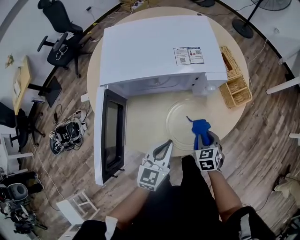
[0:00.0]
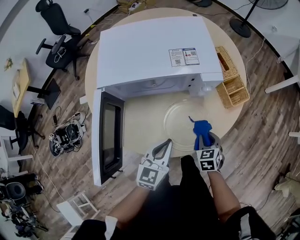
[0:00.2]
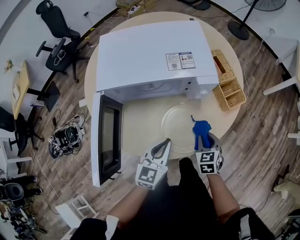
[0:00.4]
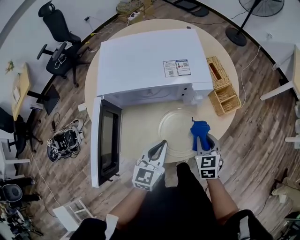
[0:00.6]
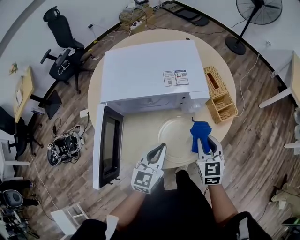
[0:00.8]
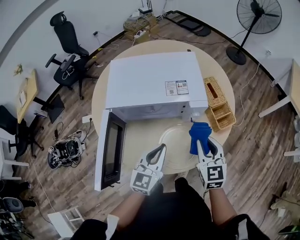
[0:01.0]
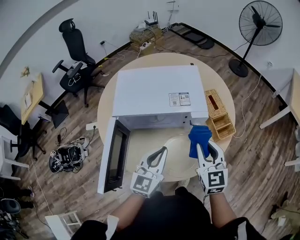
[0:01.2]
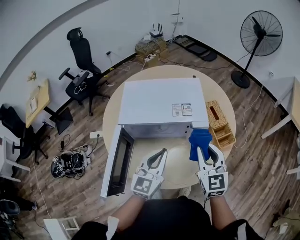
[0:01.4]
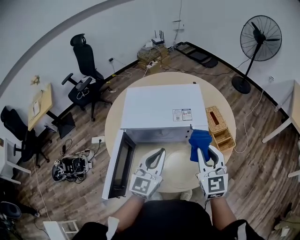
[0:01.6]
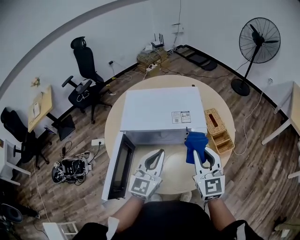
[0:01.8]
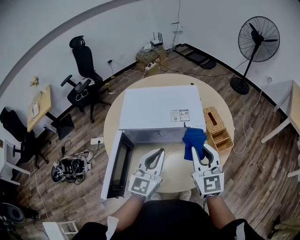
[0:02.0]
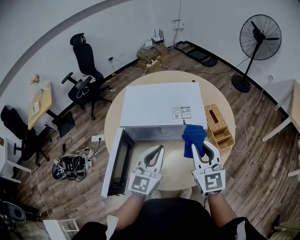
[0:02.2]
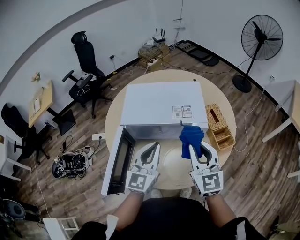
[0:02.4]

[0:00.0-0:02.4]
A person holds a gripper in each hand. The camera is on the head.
0:00.0 to 0:01.2: The left gripper is displaced upward and forward by roughly 15 cm. Meanwhile the right gripper goes about 25 cm upward, and tips its fingers upward by roughly 40 degrees.
0:01.2 to 0:02.4: Both grippers move upward, some 10 cm.

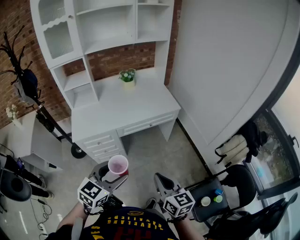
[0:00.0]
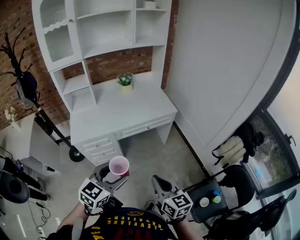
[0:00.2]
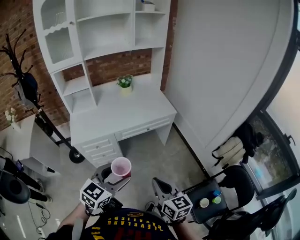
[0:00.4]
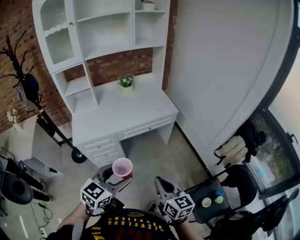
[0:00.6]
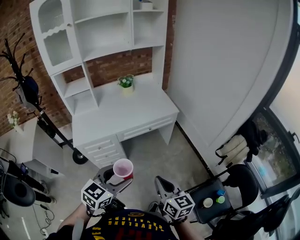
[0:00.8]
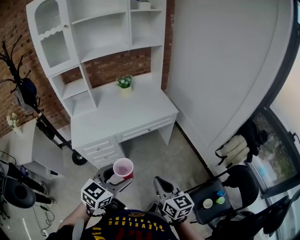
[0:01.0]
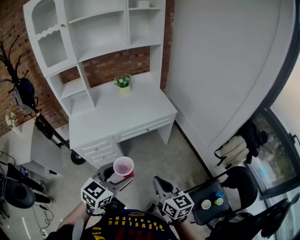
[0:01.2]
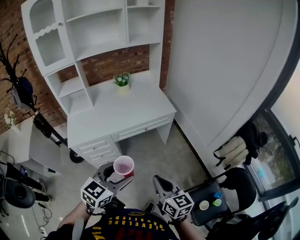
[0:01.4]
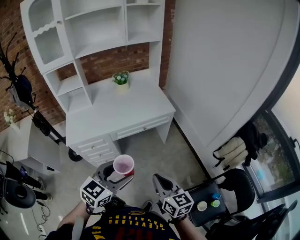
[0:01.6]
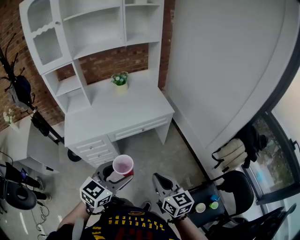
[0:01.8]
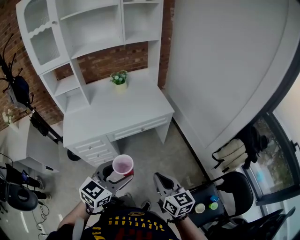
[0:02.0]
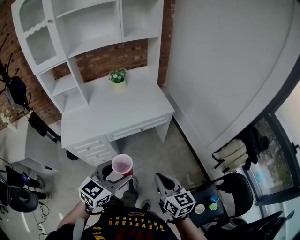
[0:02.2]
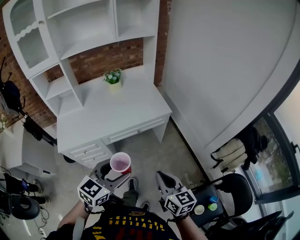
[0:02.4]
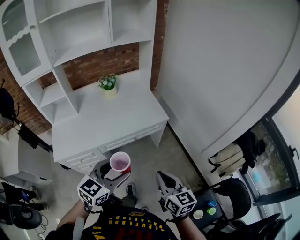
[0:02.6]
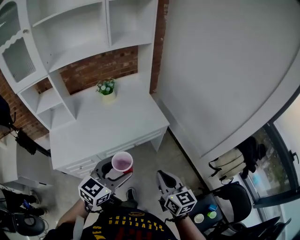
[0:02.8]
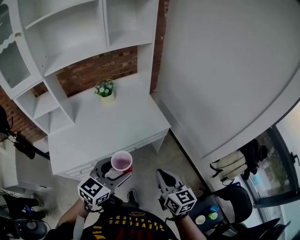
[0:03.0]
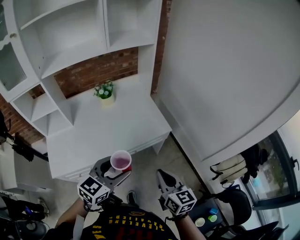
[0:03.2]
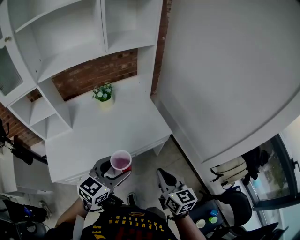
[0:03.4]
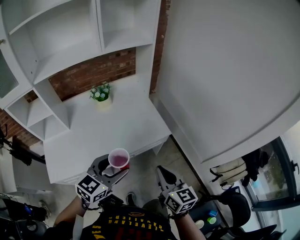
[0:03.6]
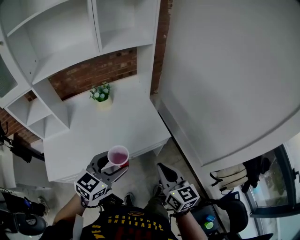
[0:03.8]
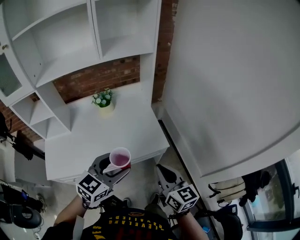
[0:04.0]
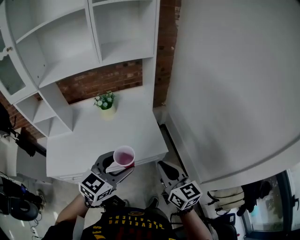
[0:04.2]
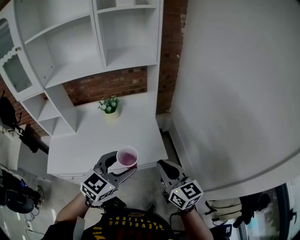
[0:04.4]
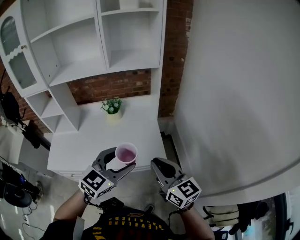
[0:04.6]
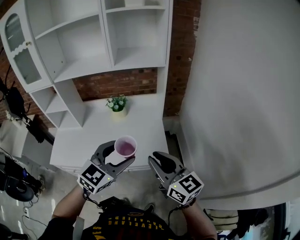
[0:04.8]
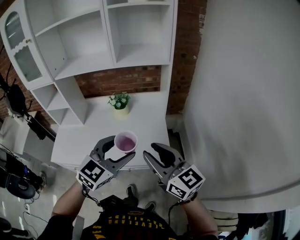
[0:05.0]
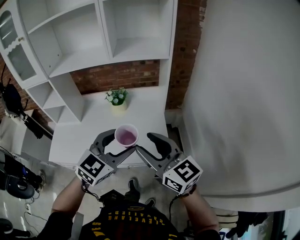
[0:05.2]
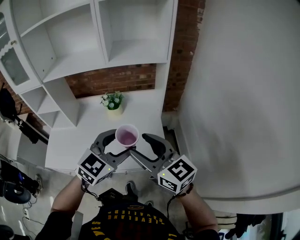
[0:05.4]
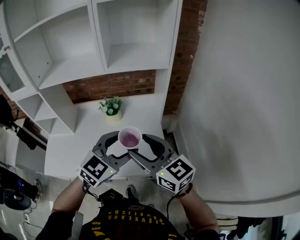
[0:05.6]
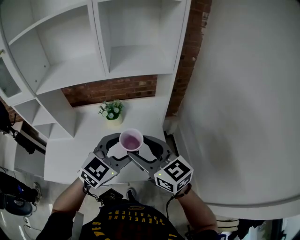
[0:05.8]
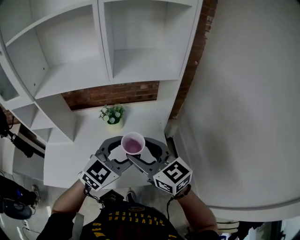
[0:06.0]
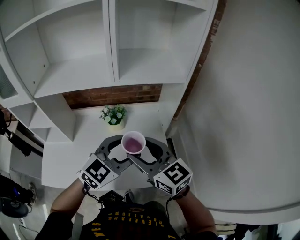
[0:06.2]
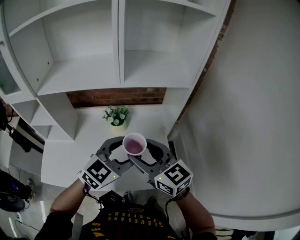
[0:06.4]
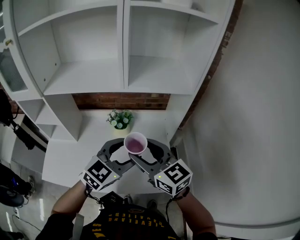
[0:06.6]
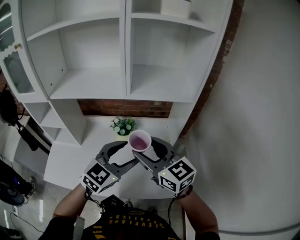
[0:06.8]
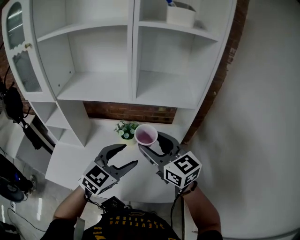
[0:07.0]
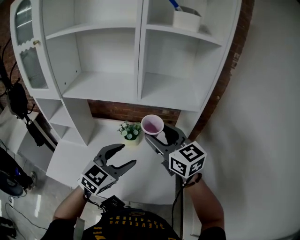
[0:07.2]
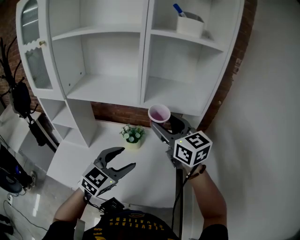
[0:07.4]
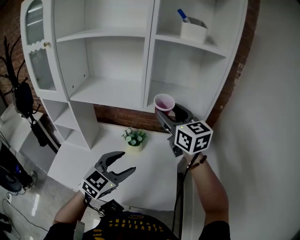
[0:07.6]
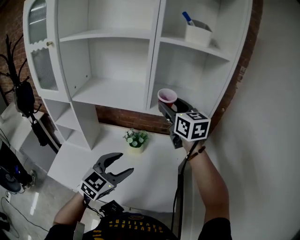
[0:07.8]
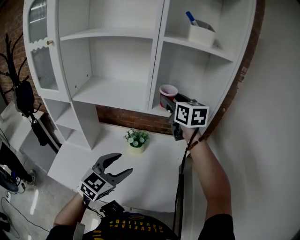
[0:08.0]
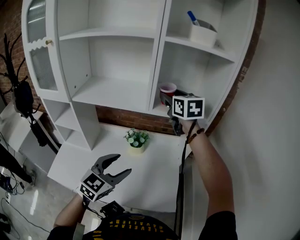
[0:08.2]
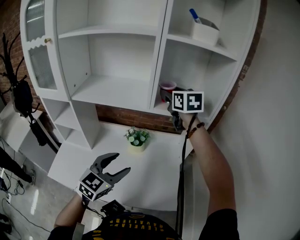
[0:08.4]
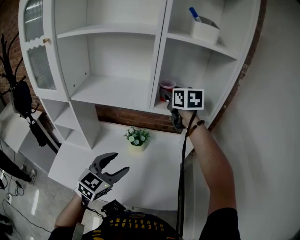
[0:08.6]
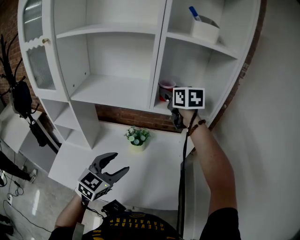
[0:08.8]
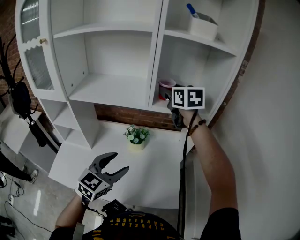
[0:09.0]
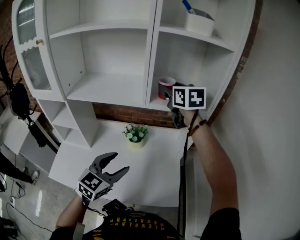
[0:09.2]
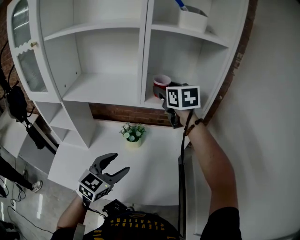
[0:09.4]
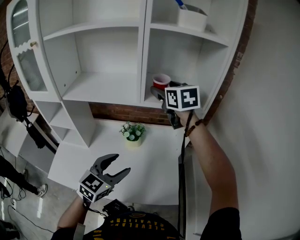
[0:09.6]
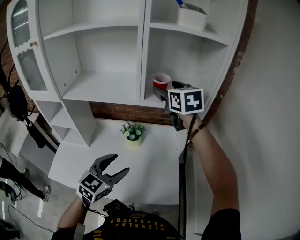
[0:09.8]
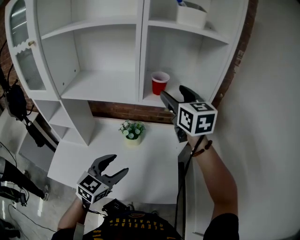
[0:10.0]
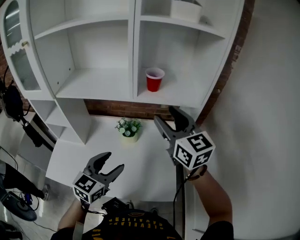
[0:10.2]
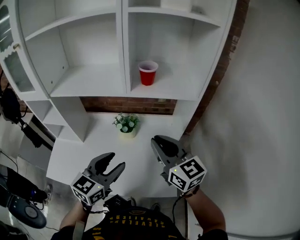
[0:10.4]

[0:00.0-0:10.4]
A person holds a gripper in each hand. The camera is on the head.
0:00.0 to 0:01.4: The left gripper shifts roughly 5 cm to the right.
0:01.4 to 0:03.0: Both grippers travel together forward, some 25 cm.
0:03.0 to 0:04.4: The right gripper moves forward, approximately 20 cm, and turns by some 20 degrees, while the left gripper shifts roughly 20 cm forward and to the right.
0:04.4 to 0:06.0: The left gripper is displaced forward by about 20 cm, while the right gripper moves forward and to the left, approximately 25 cm, swivels about 20 degrees, and opens up.
0:06.0 to 0:07.4: The left gripper goes approximately 10 cm to the left, and rotates approximately 20 degrees. The right gripper travels forward and upward by about 20 cm.
0:07.4 to 0:09.0: The left gripper goes approximately 5 cm to the left. Meanwhile the right gripper travels forward by approximately 20 cm, and swivels roughly 20 degrees.
0:09.0 to 0:10.4: The right gripper is displaced backward and downward by roughly 25 cm, and closes up; the left gripper goes approximately 5 cm to the right.

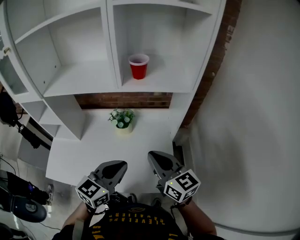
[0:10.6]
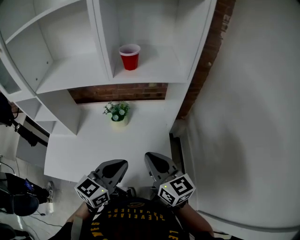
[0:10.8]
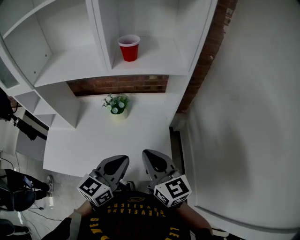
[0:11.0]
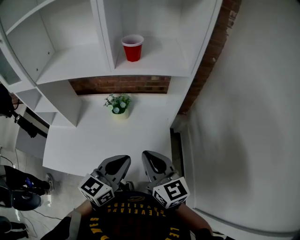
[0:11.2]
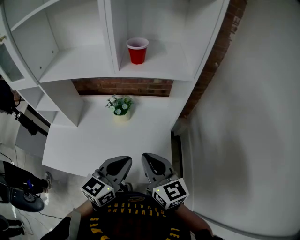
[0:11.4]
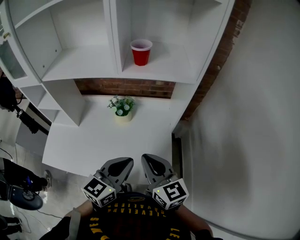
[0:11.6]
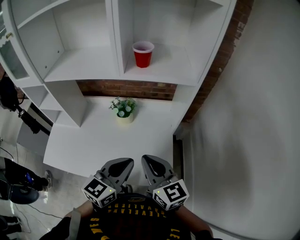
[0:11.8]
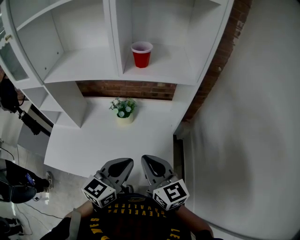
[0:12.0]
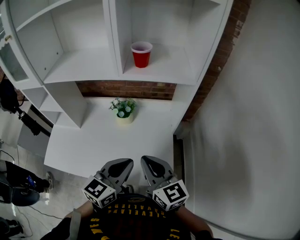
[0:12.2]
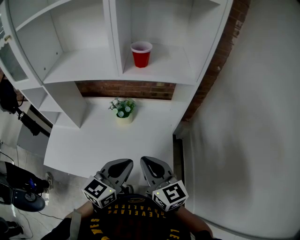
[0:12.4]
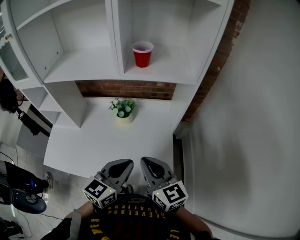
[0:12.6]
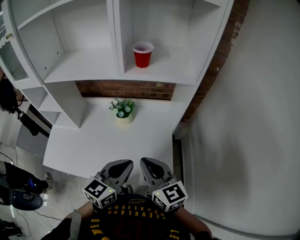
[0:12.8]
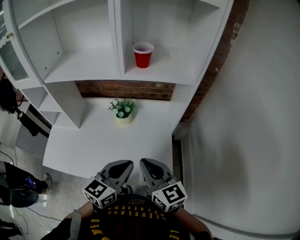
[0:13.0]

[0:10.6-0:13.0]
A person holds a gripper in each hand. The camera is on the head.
0:10.6 to 0:11.8: There are only small adjustments of the grippers.
0:11.8 to 0:13.0: The grippers stay close to where they were, moving slightly.

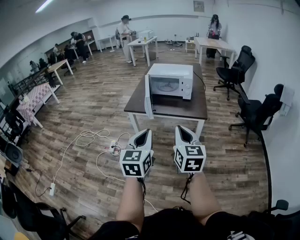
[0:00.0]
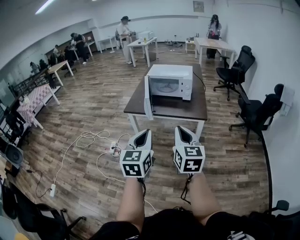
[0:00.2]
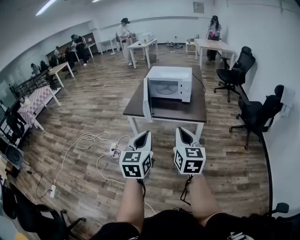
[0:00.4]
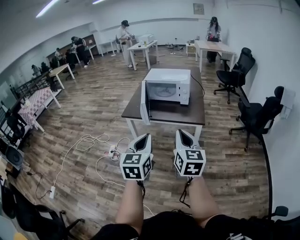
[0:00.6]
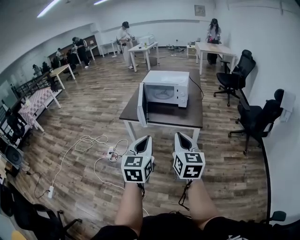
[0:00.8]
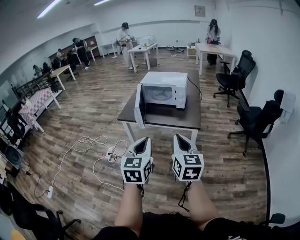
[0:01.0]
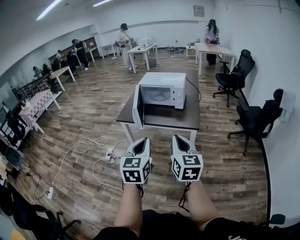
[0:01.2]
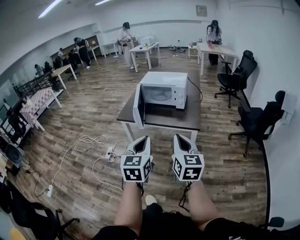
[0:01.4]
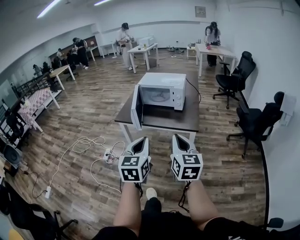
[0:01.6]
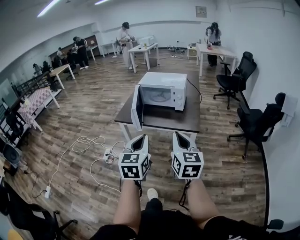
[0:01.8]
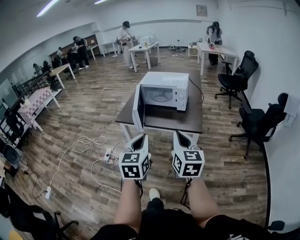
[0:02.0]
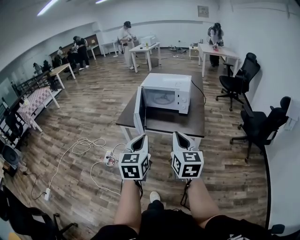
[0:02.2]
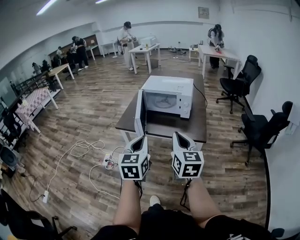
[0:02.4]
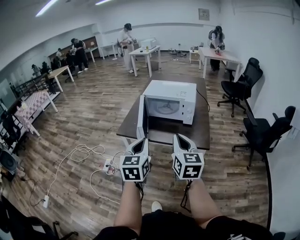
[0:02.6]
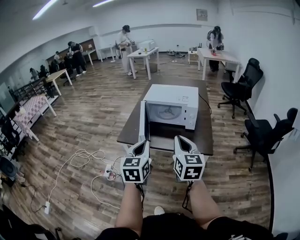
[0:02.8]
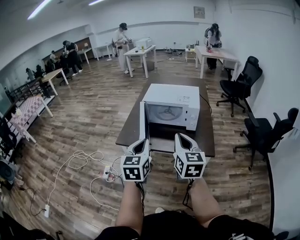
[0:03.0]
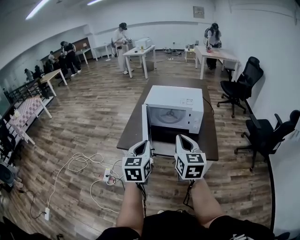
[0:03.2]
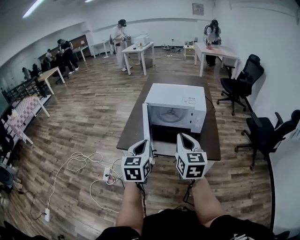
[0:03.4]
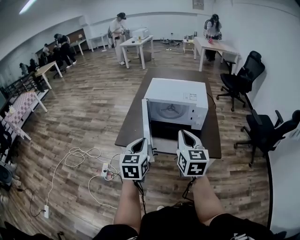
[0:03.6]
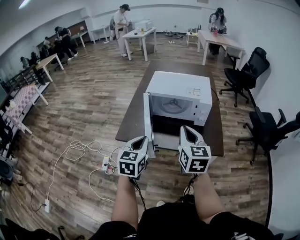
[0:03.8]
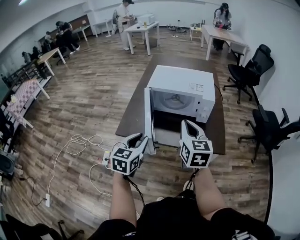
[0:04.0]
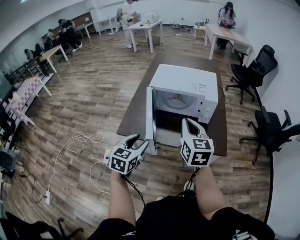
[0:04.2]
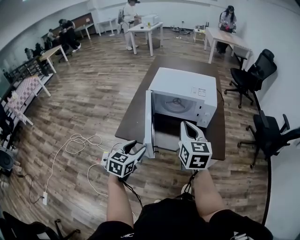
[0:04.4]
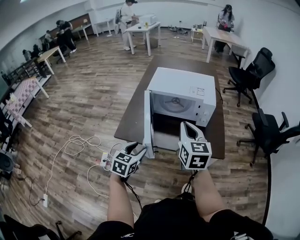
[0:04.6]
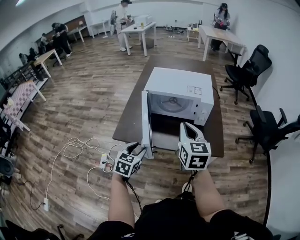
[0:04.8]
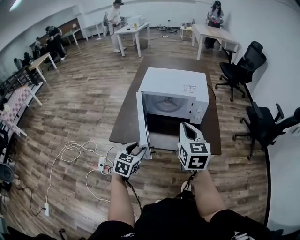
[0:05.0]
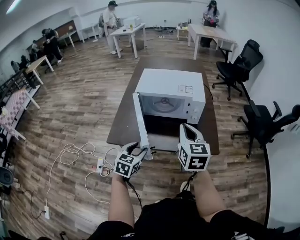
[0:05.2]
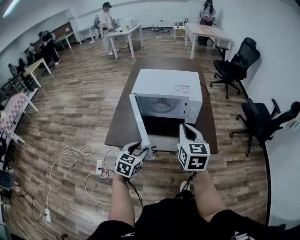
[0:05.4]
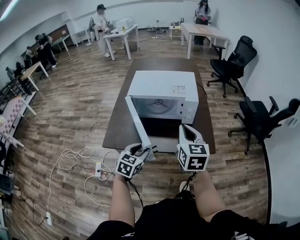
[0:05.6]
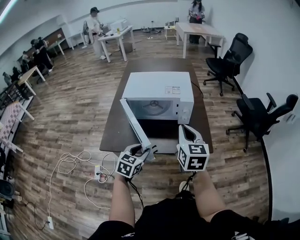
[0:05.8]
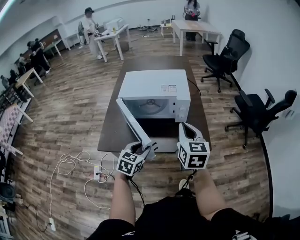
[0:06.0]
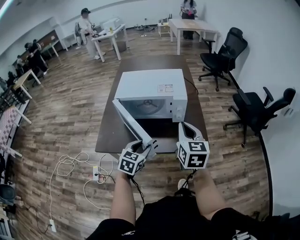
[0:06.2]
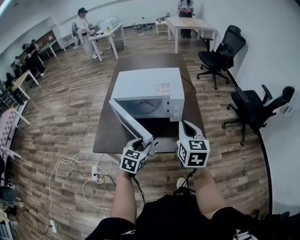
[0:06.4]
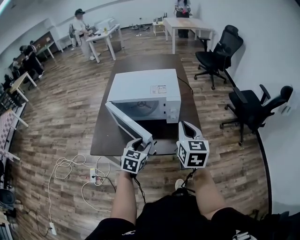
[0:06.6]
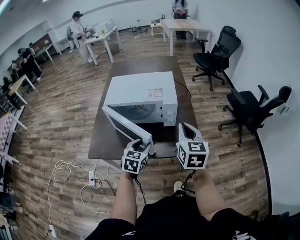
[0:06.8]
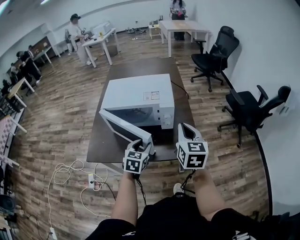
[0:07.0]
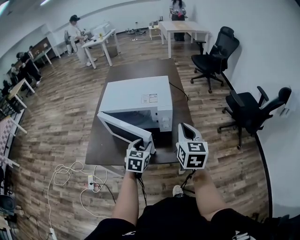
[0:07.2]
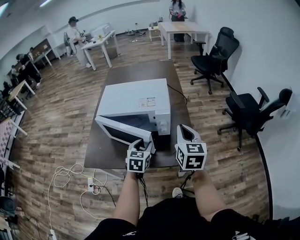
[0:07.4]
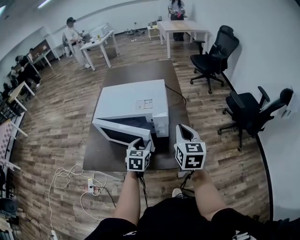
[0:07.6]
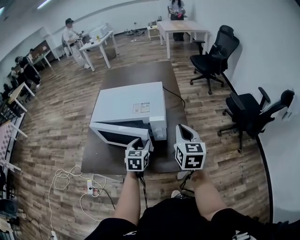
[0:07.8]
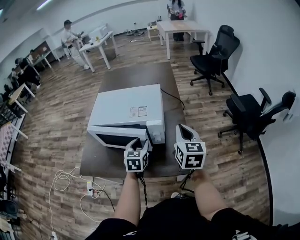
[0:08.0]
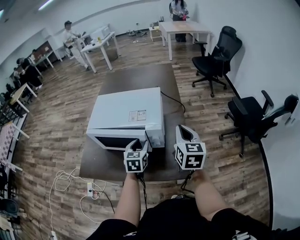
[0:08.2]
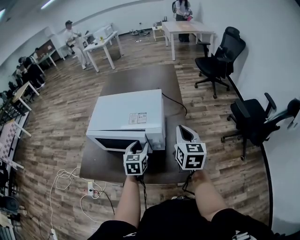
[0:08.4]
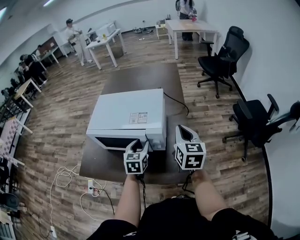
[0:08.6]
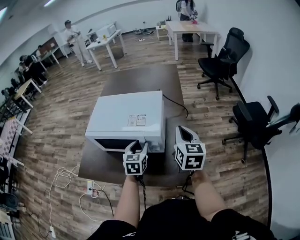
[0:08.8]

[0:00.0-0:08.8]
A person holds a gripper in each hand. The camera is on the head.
0:00.0 to 0:01.4: The right gripper moves to the right, approximately 10 cm; the left gripper shifts some 10 cm to the right and forward.
0:01.4 to 0:03.0: Both grippers move forward, approximately 30 cm.
0:03.0 to 0:04.4: The right gripper moves forward, about 15 cm. Meanwhile the left gripper goes about 20 cm downward, forward and to the left, swivels some 20 degrees, and opens.
0:04.4 to 0:05.8: The left gripper shifts some 10 cm to the right and forward. Meanwhile the right gripper travels to the right by approximately 10 cm.
0:05.8 to 0:07.4: The right gripper is displaced to the right and forward by some 15 cm. Meanwhile the left gripper heads forward and to the right, covering some 20 cm.
0:07.4 to 0:08.8: The right gripper goes some 15 cm forward and to the right; the left gripper moves forward, roughly 10 cm.
